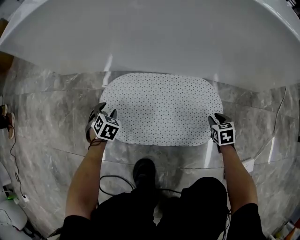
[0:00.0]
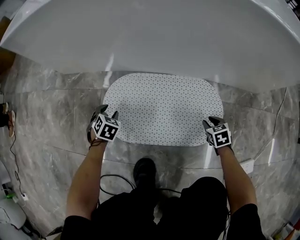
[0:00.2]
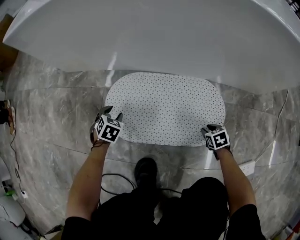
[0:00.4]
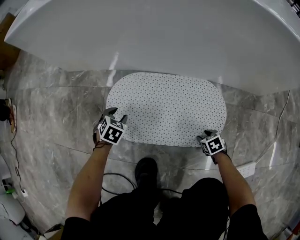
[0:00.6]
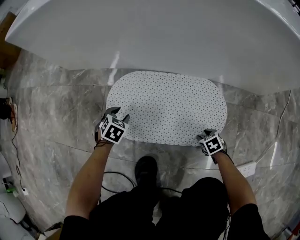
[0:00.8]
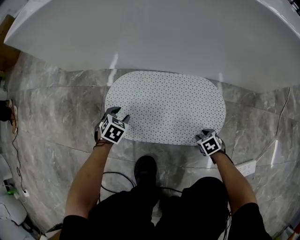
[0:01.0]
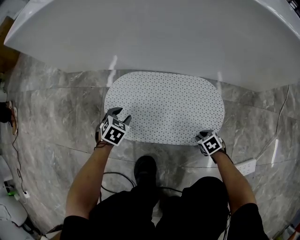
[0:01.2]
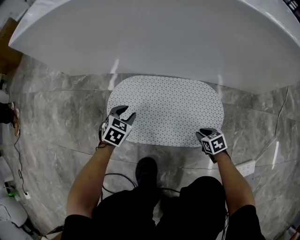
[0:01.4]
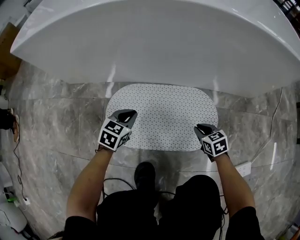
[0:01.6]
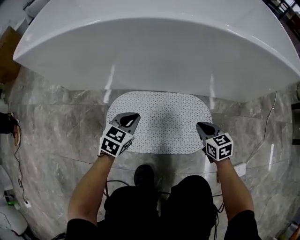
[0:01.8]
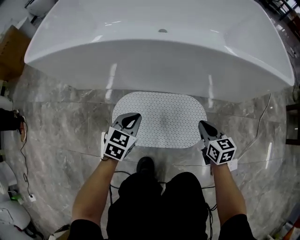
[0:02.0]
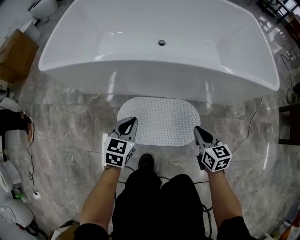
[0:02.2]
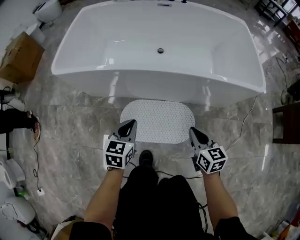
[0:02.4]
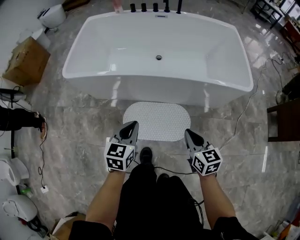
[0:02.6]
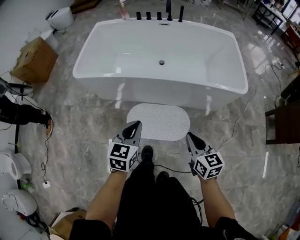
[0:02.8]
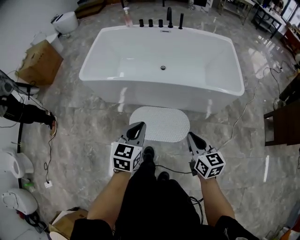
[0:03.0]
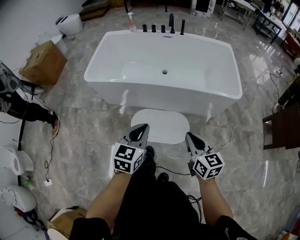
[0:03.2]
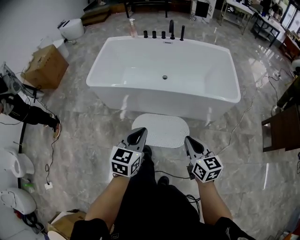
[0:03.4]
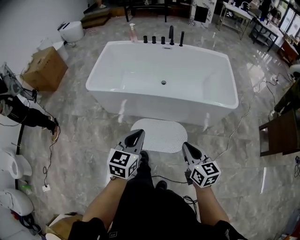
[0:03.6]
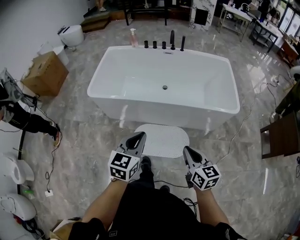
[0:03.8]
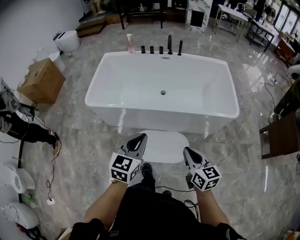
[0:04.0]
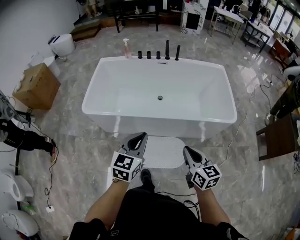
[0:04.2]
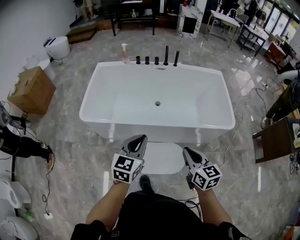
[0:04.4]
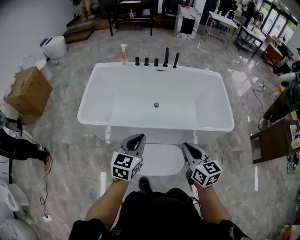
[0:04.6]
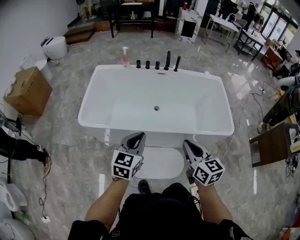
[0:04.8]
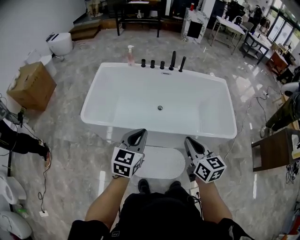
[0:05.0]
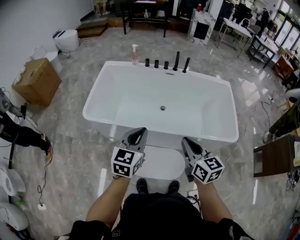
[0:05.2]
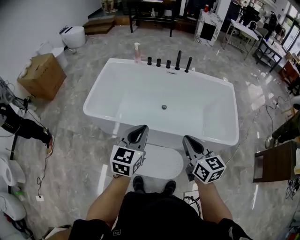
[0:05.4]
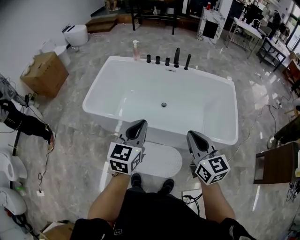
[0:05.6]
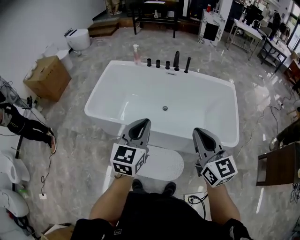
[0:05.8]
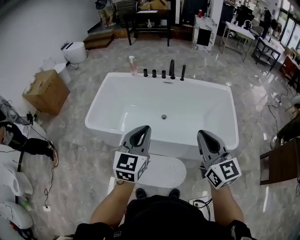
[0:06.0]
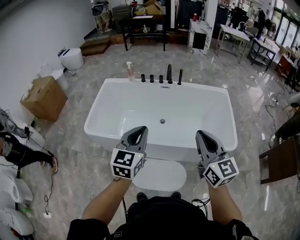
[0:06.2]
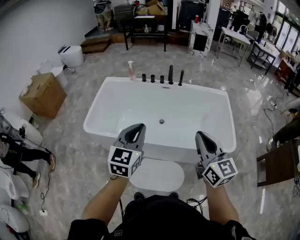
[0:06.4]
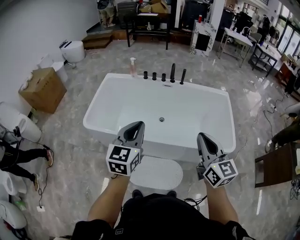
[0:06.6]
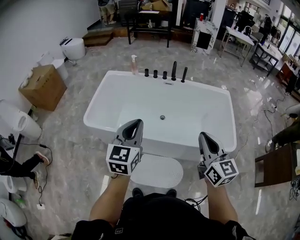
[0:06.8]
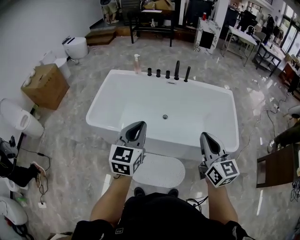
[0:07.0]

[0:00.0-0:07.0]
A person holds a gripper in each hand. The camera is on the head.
0:00.0 to 0:01.4: The right gripper moves roughly 10 cm. Meanwhile the left gripper changes place by roughly 10 cm, and swivels roughly 20 degrees.
0:01.4 to 0:02.8: The two grippers go some 80 cm upward. The right gripper angles its fingers upward, by approximately 40 degrees. The left gripper swivels about 30 degrees, and closes.
0:02.8 to 0:04.2: The right gripper moves upward, about 15 cm. The left gripper shifts approximately 20 cm upward and forward.
0:04.2 to 0:05.6: Both grippers move forward, upward and to the right, some 15 cm.
0:05.6 to 0:07.0: The left gripper moves about 5 cm.

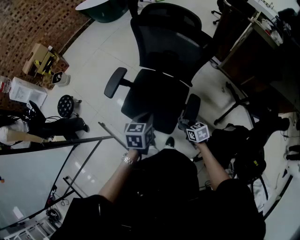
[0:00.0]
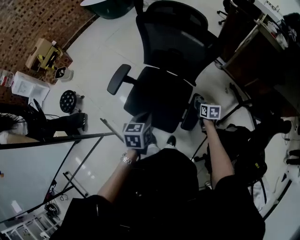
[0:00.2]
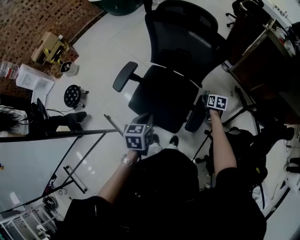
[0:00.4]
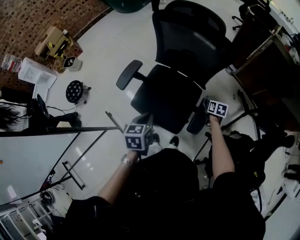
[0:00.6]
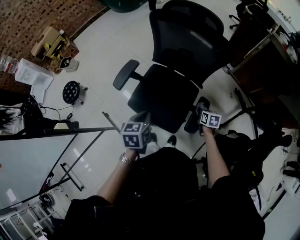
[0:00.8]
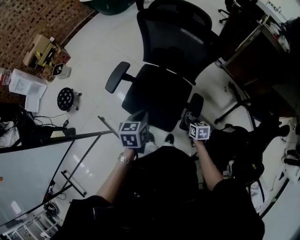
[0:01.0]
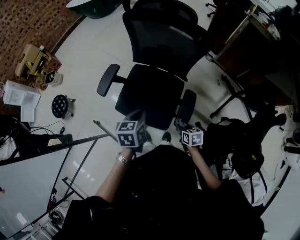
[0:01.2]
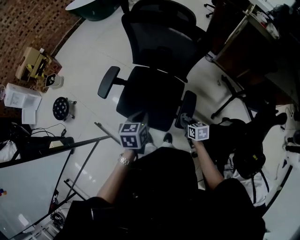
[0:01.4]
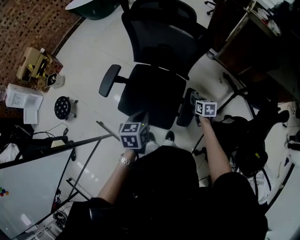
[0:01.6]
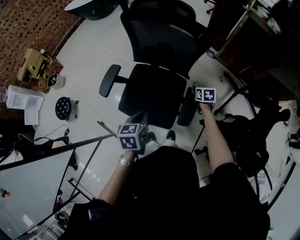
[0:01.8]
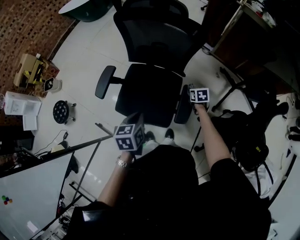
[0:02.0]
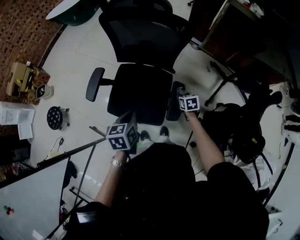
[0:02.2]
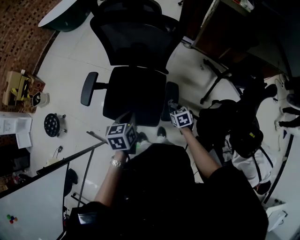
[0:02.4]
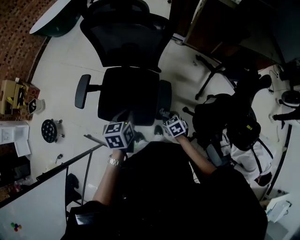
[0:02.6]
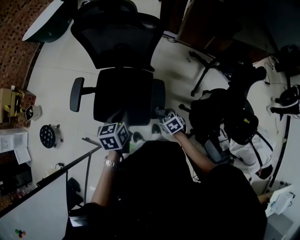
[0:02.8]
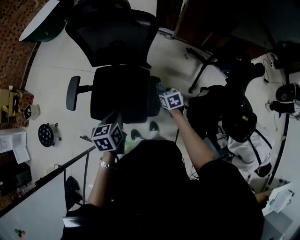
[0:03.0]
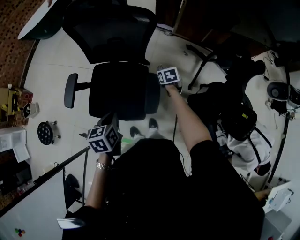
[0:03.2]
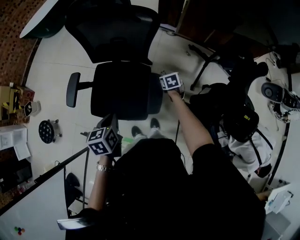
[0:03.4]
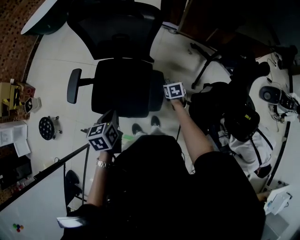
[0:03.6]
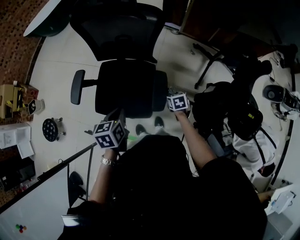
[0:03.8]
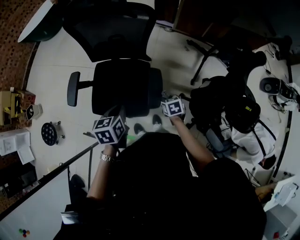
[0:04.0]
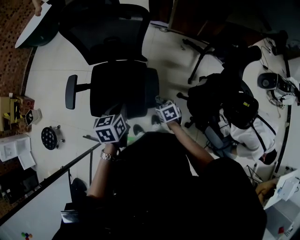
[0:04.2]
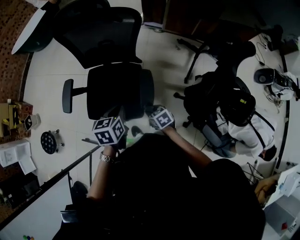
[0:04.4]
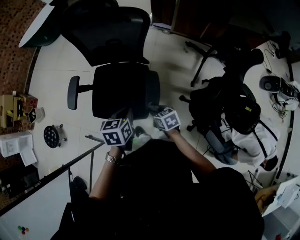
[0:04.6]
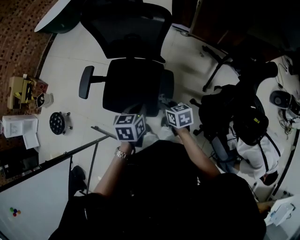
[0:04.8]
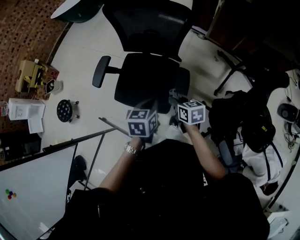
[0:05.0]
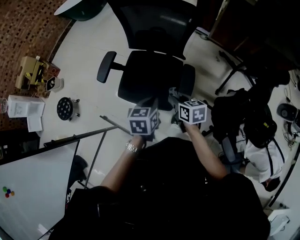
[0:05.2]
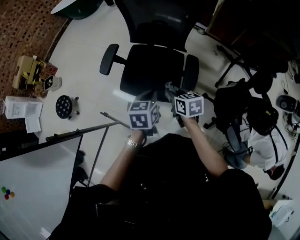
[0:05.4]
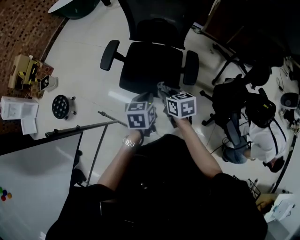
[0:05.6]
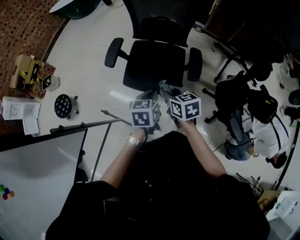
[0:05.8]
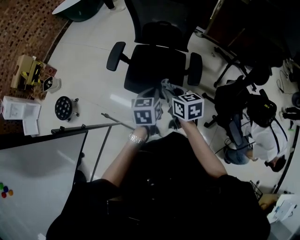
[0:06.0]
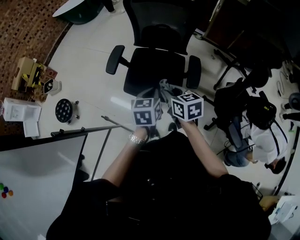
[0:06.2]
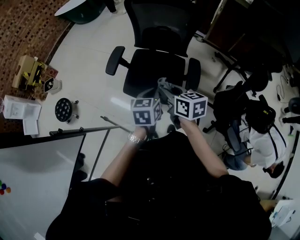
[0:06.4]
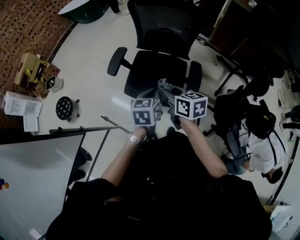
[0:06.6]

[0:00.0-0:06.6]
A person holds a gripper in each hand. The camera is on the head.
0:00.0 to 0:01.6: The right gripper swings forward and backward, some 20 cm each way, with 2 reversals, and swivels some 30 degrees.
0:01.6 to 0:03.2: The right gripper swings forward and backward, some 20 cm each way, with 2 reversals.
0:03.2 to 0:05.0: The right gripper moves backward, to the left and upward, approximately 25 cm, and changes its angle by roughly 30 degrees. Meanwhile the left gripper goes approximately 5 cm to the right.
0:05.0 to 0:06.6: The left gripper shifts approximately 15 cm to the left. The right gripper is displaced to the left and upward by roughly 20 cm.

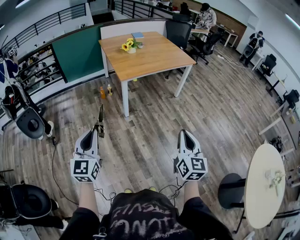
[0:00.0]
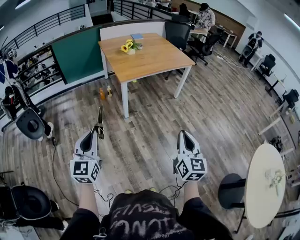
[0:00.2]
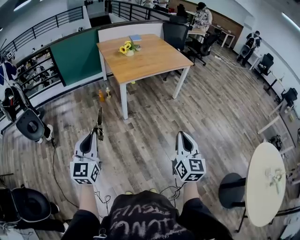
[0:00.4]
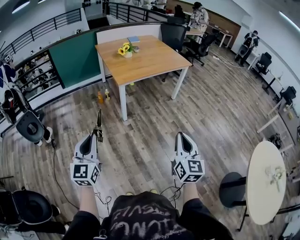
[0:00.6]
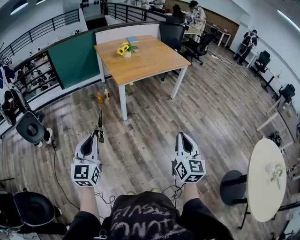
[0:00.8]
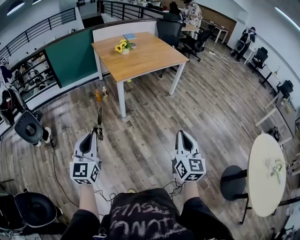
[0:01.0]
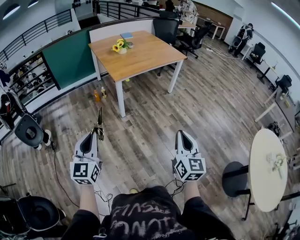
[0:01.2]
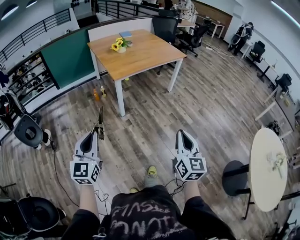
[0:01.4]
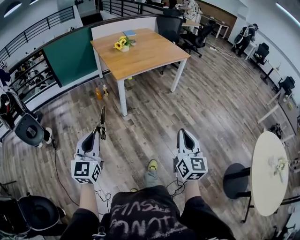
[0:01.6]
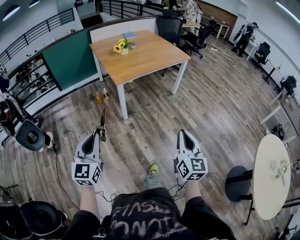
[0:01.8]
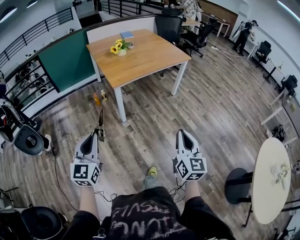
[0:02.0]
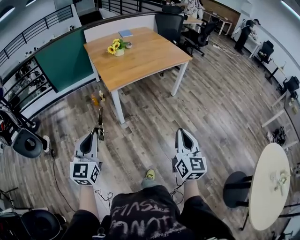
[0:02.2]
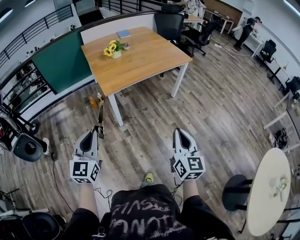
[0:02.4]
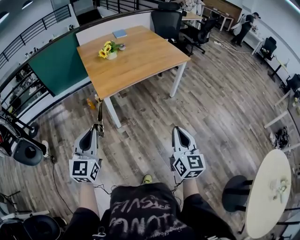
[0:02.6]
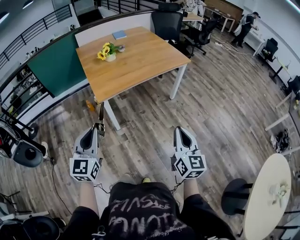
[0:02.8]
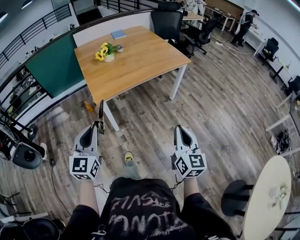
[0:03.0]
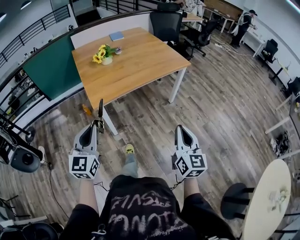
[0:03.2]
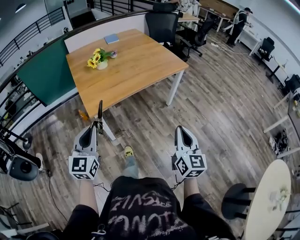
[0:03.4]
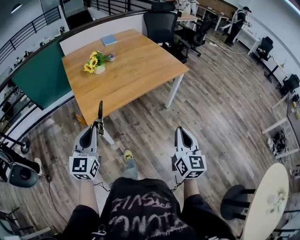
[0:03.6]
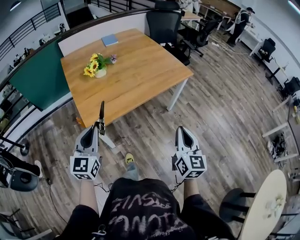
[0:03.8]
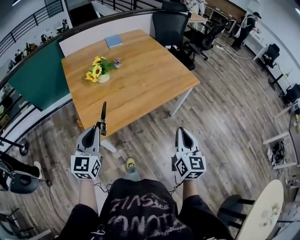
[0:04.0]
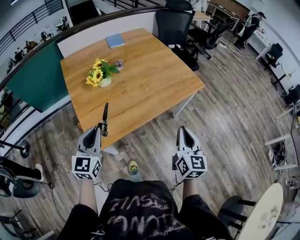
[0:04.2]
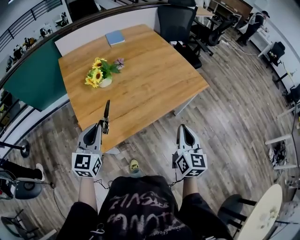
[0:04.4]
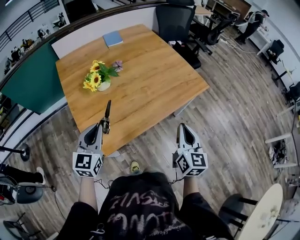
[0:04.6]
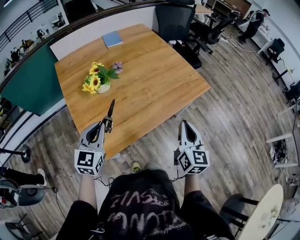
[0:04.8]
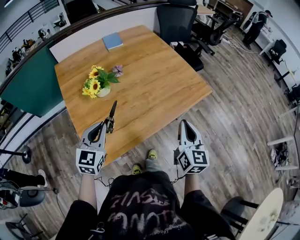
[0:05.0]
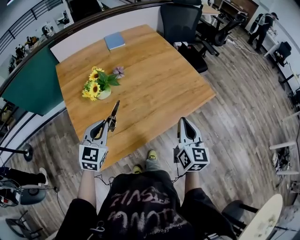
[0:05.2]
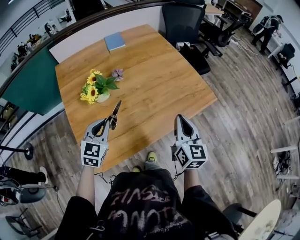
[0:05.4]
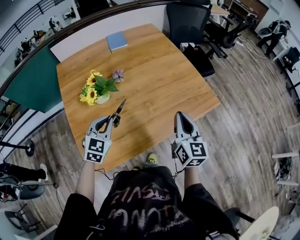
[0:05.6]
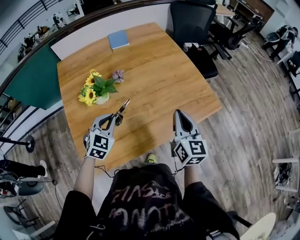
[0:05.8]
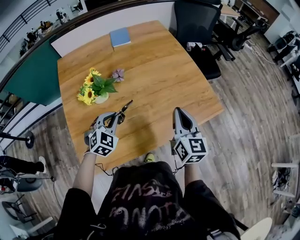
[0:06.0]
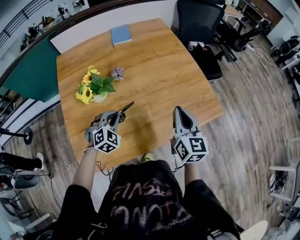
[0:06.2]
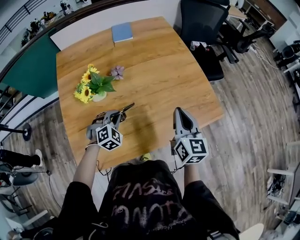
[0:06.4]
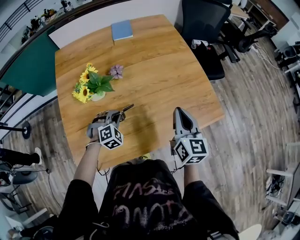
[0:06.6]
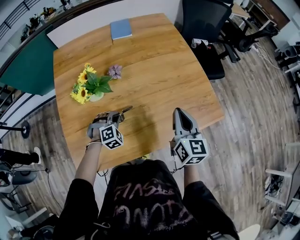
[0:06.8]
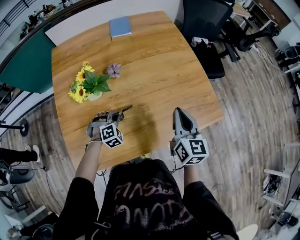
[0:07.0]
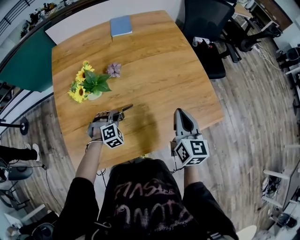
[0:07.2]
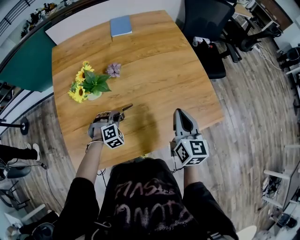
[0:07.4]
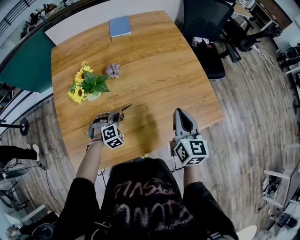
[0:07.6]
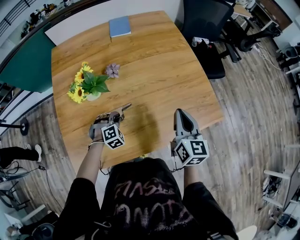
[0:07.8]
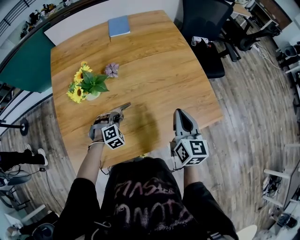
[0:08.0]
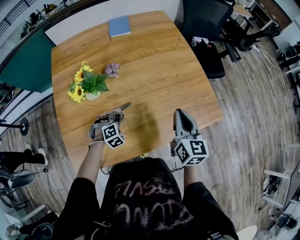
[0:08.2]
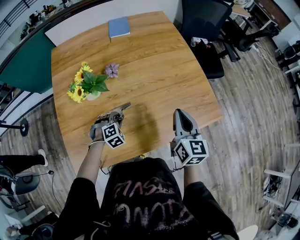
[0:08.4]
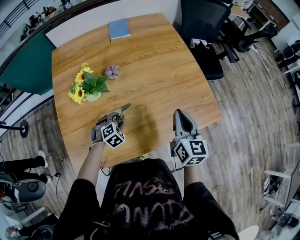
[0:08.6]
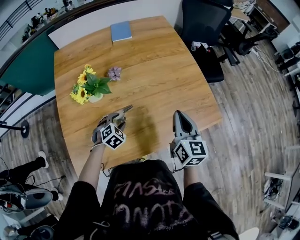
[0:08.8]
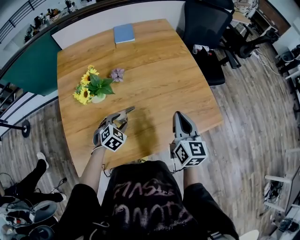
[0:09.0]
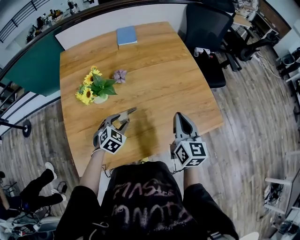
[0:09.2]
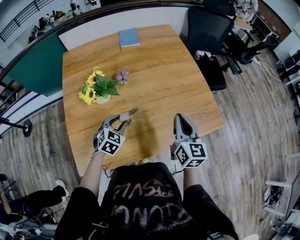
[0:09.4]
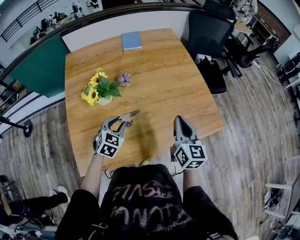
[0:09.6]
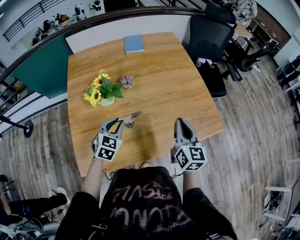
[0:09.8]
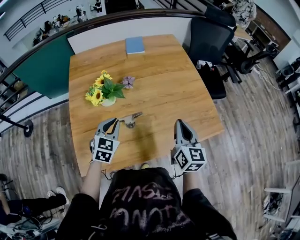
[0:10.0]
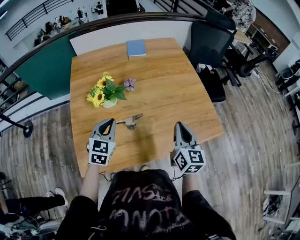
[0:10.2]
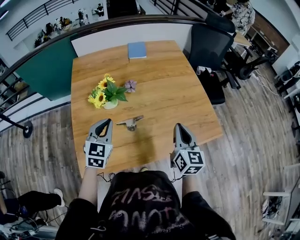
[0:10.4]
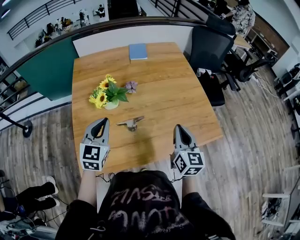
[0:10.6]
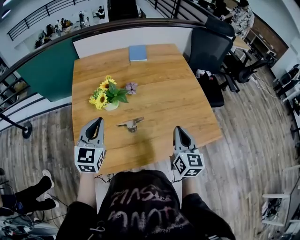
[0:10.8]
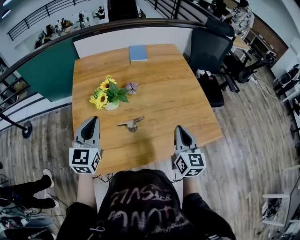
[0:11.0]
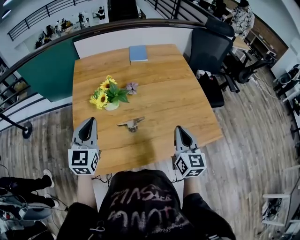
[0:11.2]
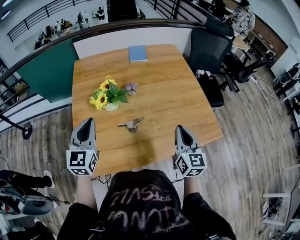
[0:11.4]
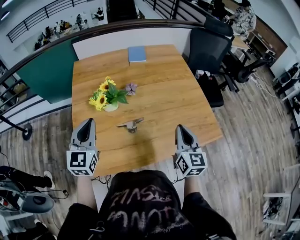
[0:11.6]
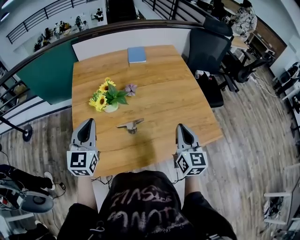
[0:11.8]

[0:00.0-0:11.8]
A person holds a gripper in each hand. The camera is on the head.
0:00.0 to 0:01.4: The right gripper shifts by approximately 5 cm.
0:01.4 to 0:03.0: Both grippers move forward, some 35 cm.
0:03.0 to 0:04.4: The two grippers travel together, forward, approximately 40 cm.
0:04.4 to 0:06.0: The left gripper goes roughly 30 cm forward and downward, and swivels about 40 degrees, while the right gripper shifts roughly 30 cm forward.
0:06.0 to 0:07.4: The left gripper moves downward, roughly 15 cm, and turns by some 30 degrees; the right gripper ends up approximately 5 cm from where it was.
0:07.4 to 0:08.8: The left gripper rotates roughly 20 degrees, and opens up.
0:08.8 to 0:10.4: The left gripper travels upward by approximately 20 cm, tips its fingers upward by about 40 degrees, and closes up. The right gripper moves approximately 5 cm.
0:10.4 to 0:11.8: The left gripper heads upward and to the left, covering roughly 10 cm.
